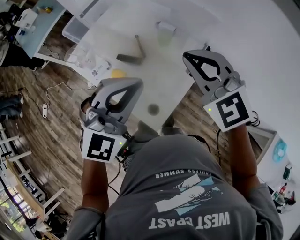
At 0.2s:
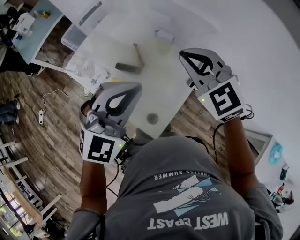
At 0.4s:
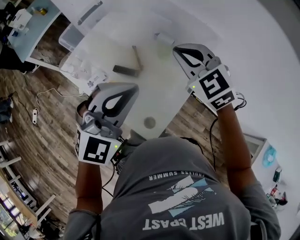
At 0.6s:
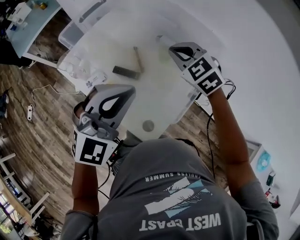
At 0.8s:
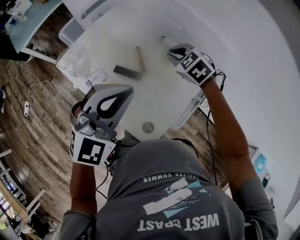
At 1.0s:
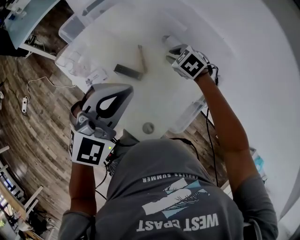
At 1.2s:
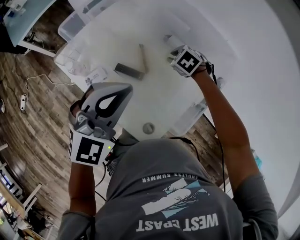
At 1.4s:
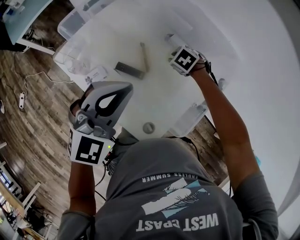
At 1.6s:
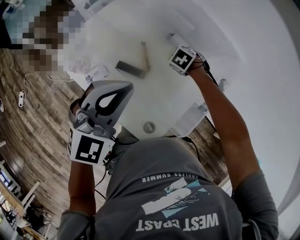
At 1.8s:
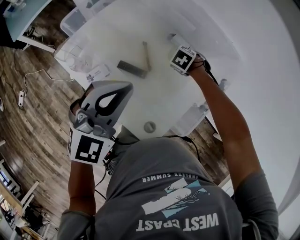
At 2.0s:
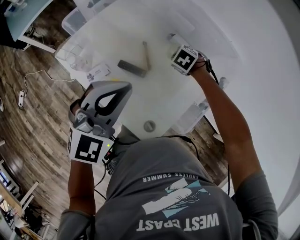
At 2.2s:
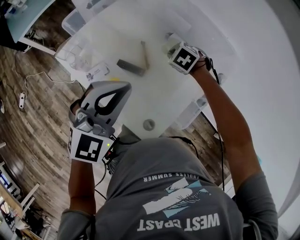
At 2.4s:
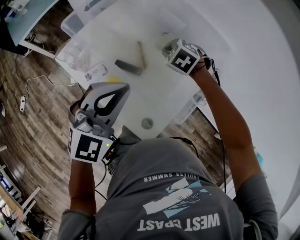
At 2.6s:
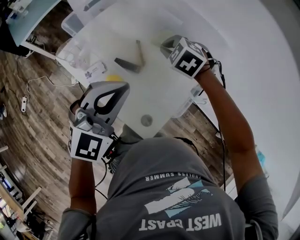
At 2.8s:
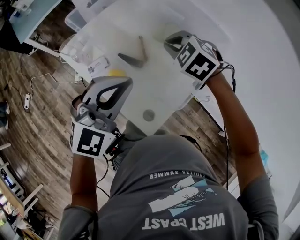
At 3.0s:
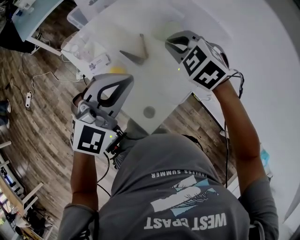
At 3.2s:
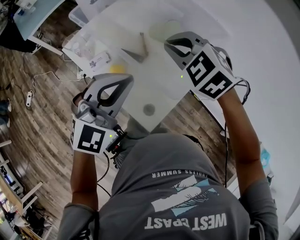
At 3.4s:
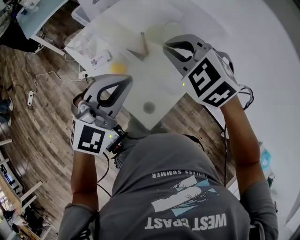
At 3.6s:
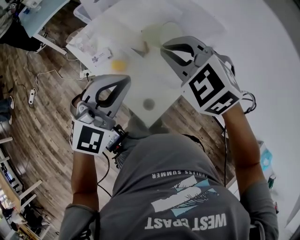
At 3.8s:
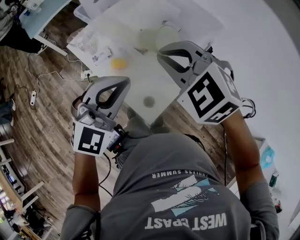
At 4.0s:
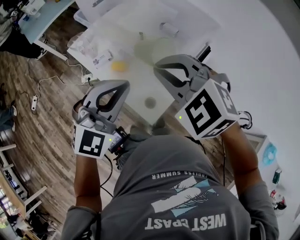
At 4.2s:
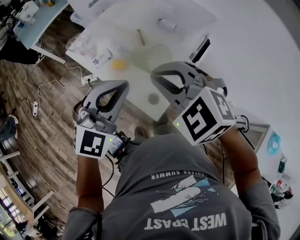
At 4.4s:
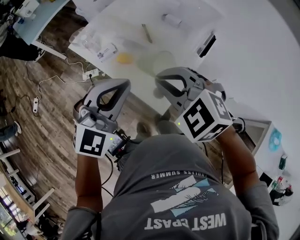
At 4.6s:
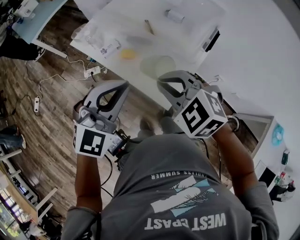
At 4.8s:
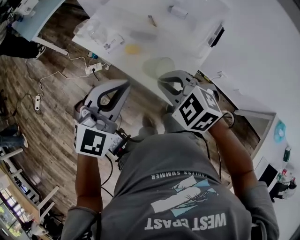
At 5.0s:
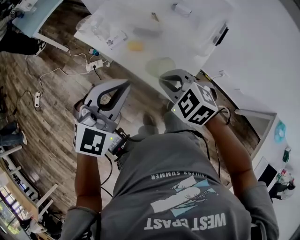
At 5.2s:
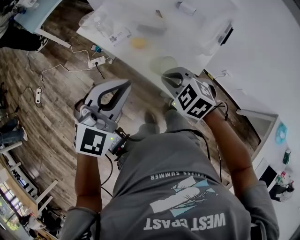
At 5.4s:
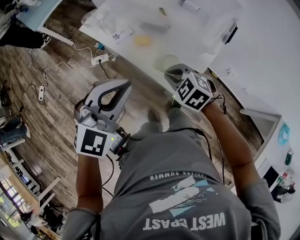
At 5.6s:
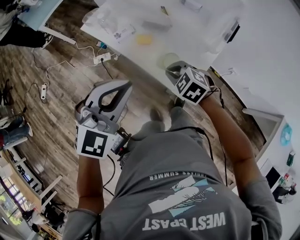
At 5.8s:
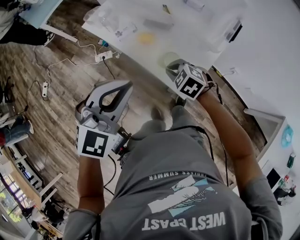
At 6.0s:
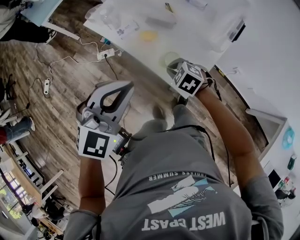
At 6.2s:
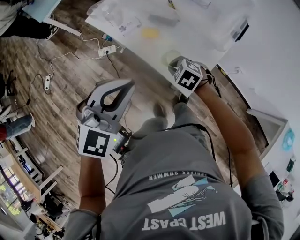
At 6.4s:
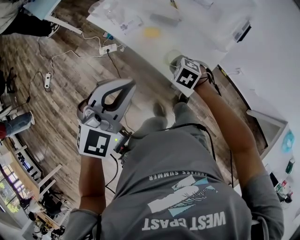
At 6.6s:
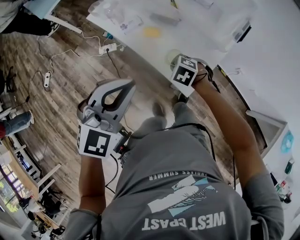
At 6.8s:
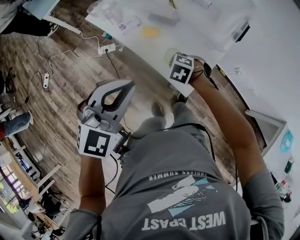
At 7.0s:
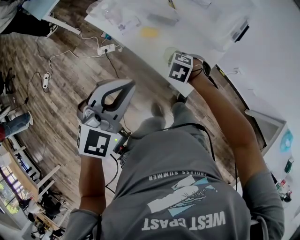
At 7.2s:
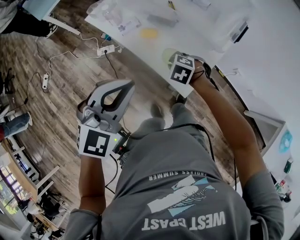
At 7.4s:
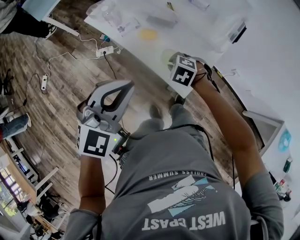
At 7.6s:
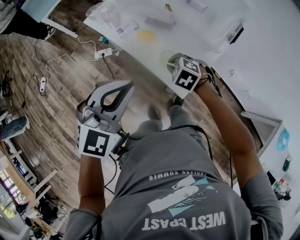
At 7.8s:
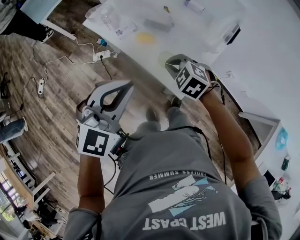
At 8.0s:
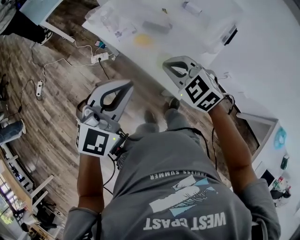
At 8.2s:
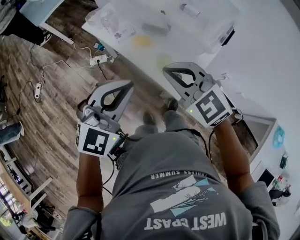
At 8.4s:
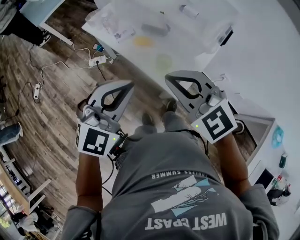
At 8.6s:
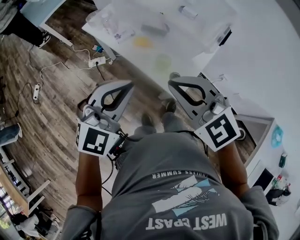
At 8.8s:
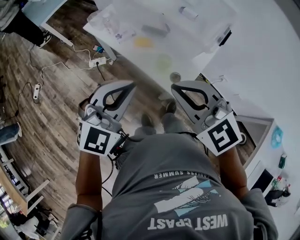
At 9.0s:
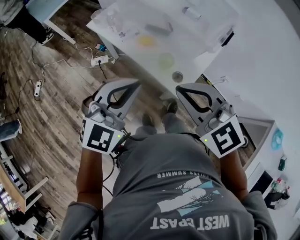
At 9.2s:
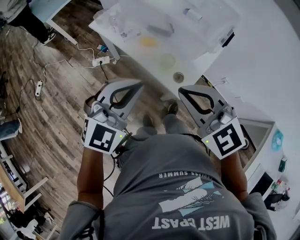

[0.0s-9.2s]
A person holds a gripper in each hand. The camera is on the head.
0.0s to 1.6s: The left gripper ends up some 15 cm from where it was. The right gripper travels downward by roughly 35 cm, and points its fingers approximately 60 degrees further downward.
1.6s to 3.0s: The right gripper is displaced upward by some 25 cm, and points its fingers approximately 30 degrees further upward, while the left gripper ends up some 10 cm from where it was.
3.0s to 4.6s: The left gripper is displaced backward and to the left by some 15 cm. The right gripper moves backward, approximately 25 cm.
4.6s to 6.2s: The right gripper moves downward, roughly 25 cm, and swivels about 20 degrees; the left gripper is displaced to the left by some 5 cm.
6.2s to 7.6s: The grippers move only a little.
7.6s to 9.2s: The right gripper shifts approximately 30 cm upward and backward, and tilts its fingers about 40 degrees upward.

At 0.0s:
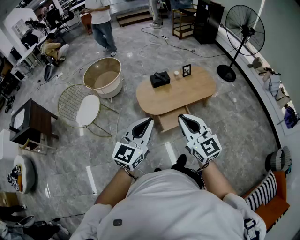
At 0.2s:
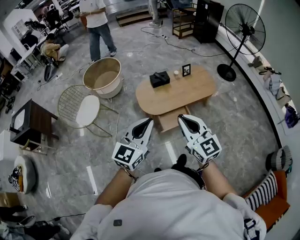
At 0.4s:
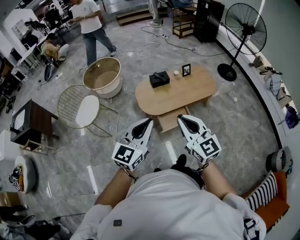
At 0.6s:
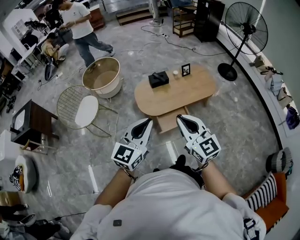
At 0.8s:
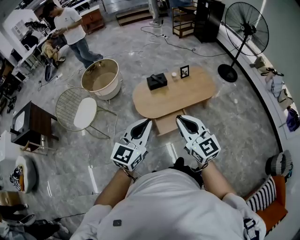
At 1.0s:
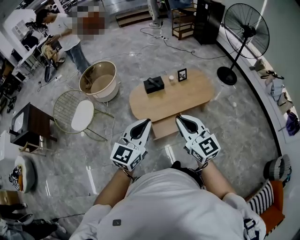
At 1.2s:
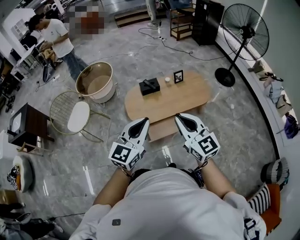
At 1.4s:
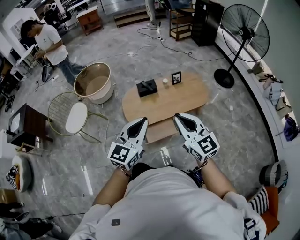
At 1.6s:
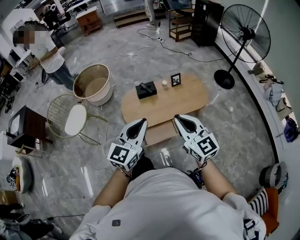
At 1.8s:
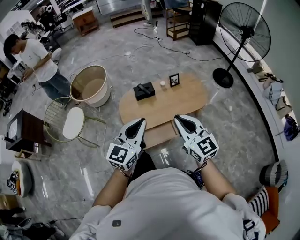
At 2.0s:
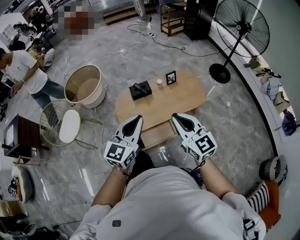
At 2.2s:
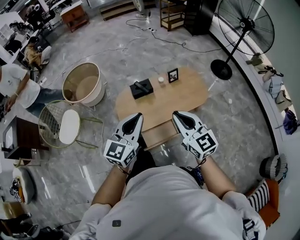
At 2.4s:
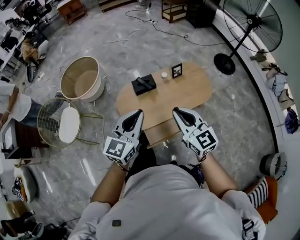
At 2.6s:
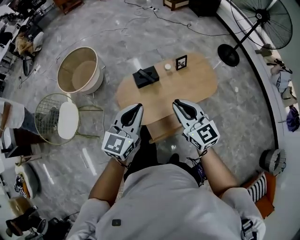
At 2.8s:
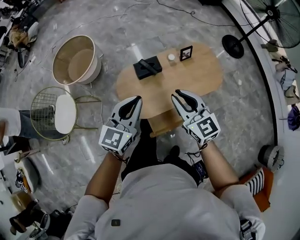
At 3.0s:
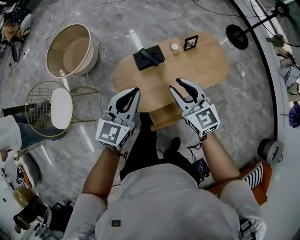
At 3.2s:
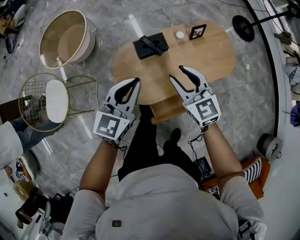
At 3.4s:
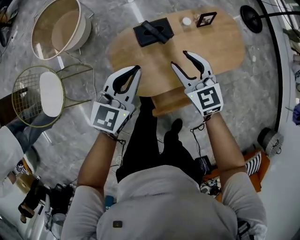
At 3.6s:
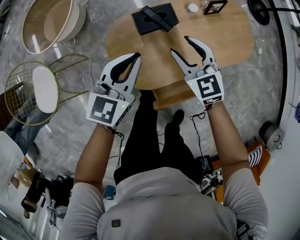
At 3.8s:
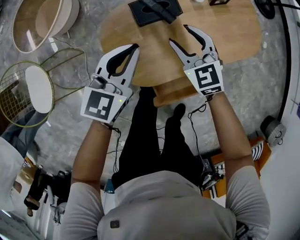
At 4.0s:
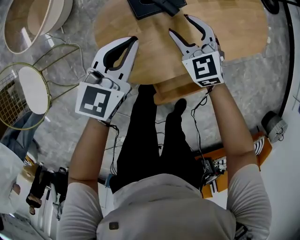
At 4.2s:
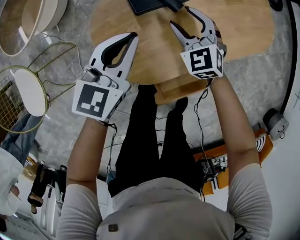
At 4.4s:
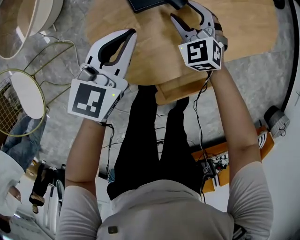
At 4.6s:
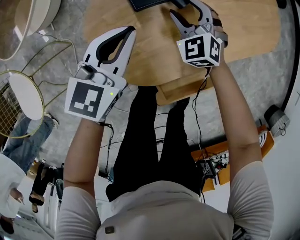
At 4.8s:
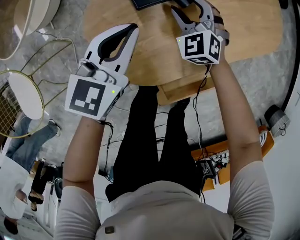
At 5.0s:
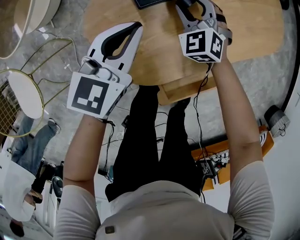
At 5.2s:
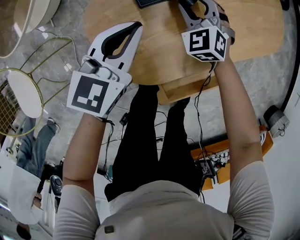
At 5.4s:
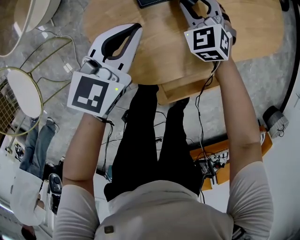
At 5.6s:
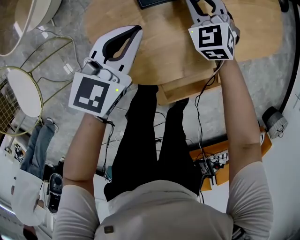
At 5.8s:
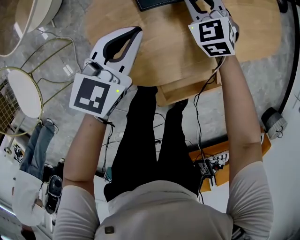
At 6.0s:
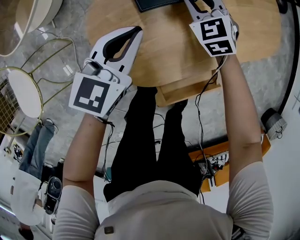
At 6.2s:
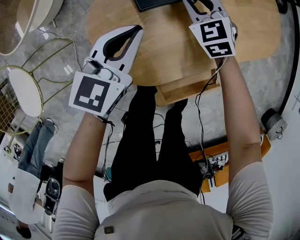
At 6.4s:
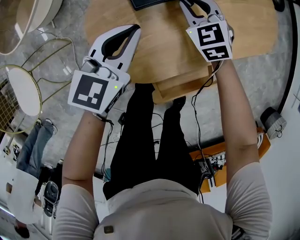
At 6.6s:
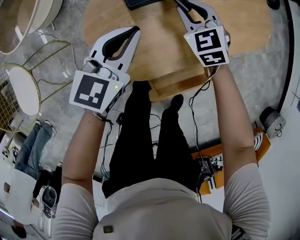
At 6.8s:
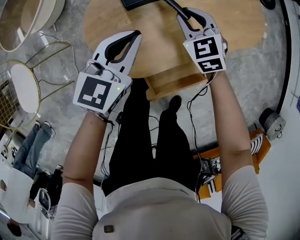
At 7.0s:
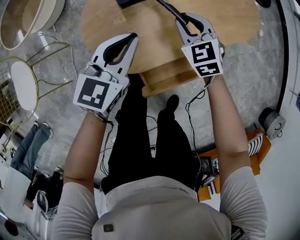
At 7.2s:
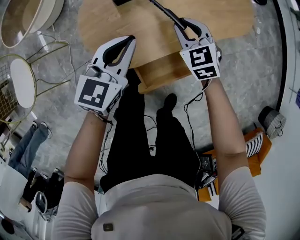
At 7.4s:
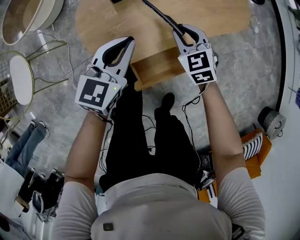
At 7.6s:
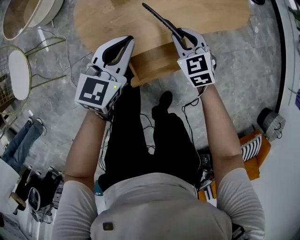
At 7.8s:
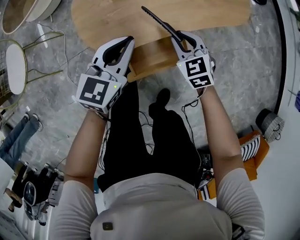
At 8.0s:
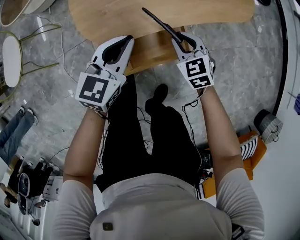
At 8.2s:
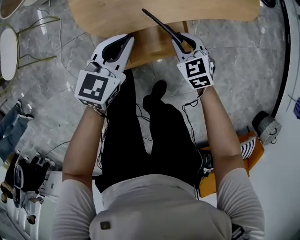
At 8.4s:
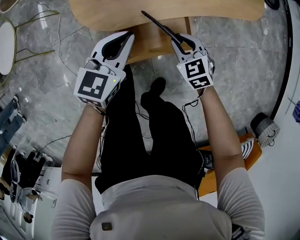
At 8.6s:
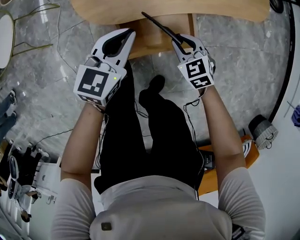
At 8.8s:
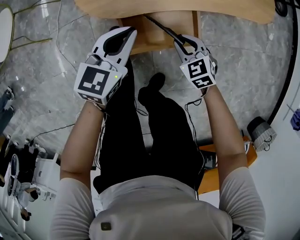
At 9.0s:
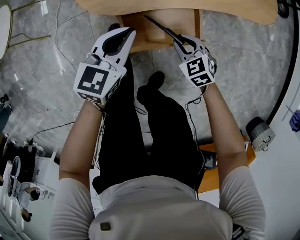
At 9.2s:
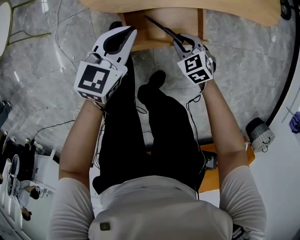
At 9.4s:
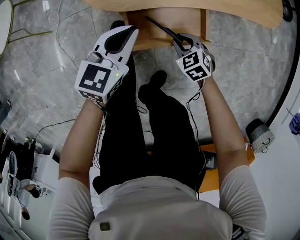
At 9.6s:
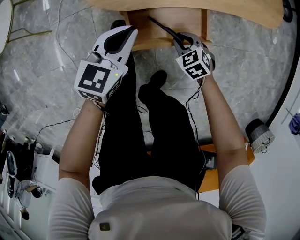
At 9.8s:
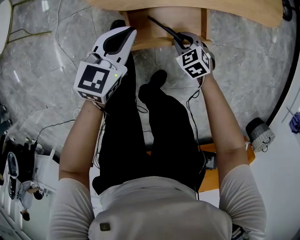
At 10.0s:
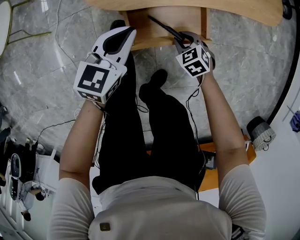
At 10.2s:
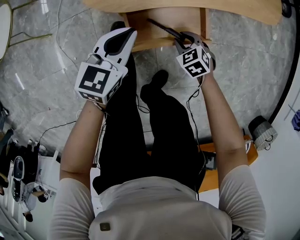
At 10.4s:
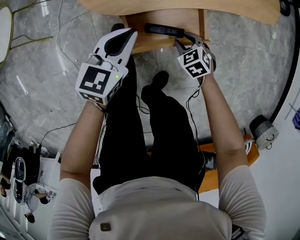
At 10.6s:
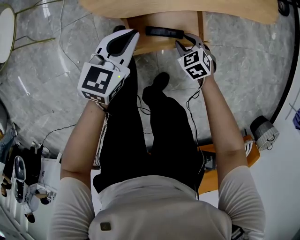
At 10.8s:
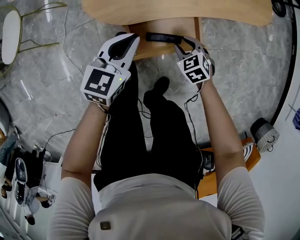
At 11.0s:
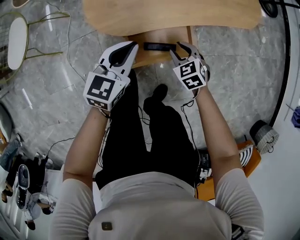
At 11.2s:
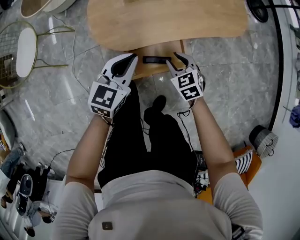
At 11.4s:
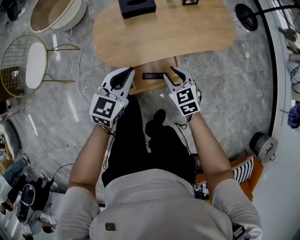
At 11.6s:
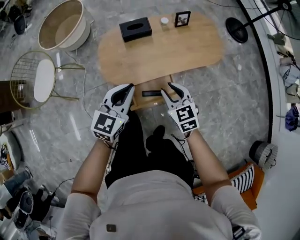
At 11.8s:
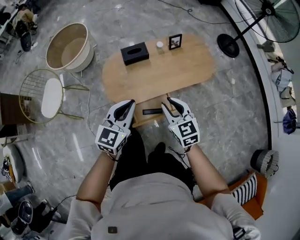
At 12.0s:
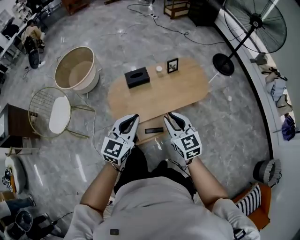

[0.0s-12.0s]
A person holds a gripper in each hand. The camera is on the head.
0.0s to 1.6s: The two grippers go roughly 25 cm to the right and forward.
1.6s to 3.0s: The two grippers go approximately 40 cm forward and downward. The right gripper opens its fingers.
3.0s to 4.4s: Both grippers move downward, about 40 cm. The right gripper changes its angle by roughly 40 degrees, and opens.
4.4s to 6.0s: The right gripper goes roughly 5 cm forward, and closes its fingers.
6.0s to 7.6s: The right gripper moves backward and to the right, roughly 30 cm, while the left gripper travels backward, to the right and upward by approximately 25 cm.
7.6s to 9.0s: Both grippers move backward and downward, about 20 cm. The right gripper swivels some 20 degrees.
9.0s to 10.4s: The right gripper heads downward, covering roughly 5 cm.
10.4s to 12.0s: Both grippers travel together upward, roughly 50 cm. The left gripper swivels about 20 degrees; the right gripper tilts its fingers approximately 50 degrees upward.

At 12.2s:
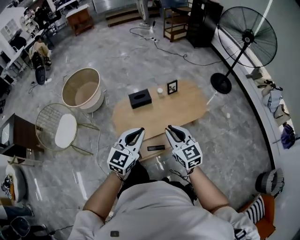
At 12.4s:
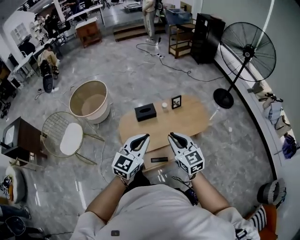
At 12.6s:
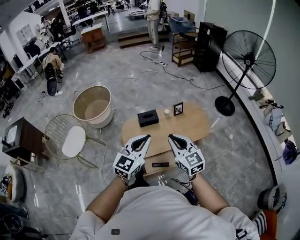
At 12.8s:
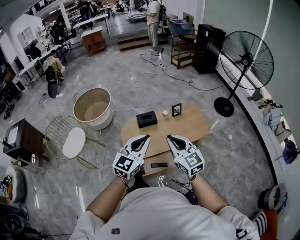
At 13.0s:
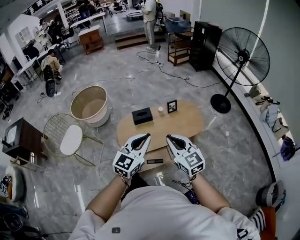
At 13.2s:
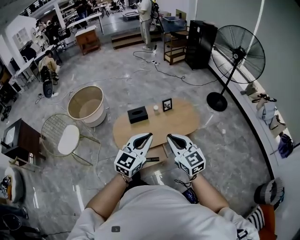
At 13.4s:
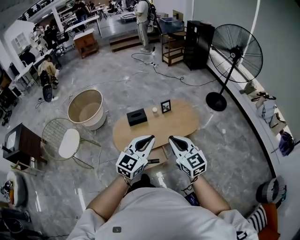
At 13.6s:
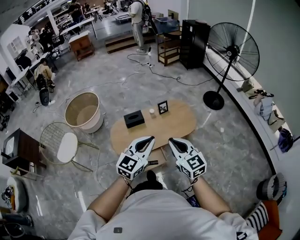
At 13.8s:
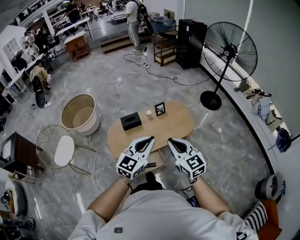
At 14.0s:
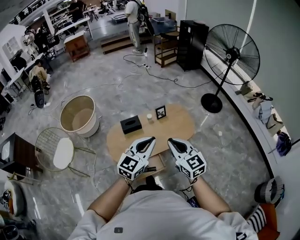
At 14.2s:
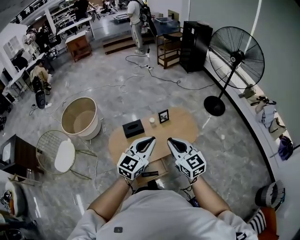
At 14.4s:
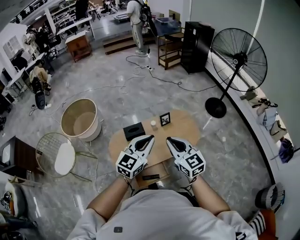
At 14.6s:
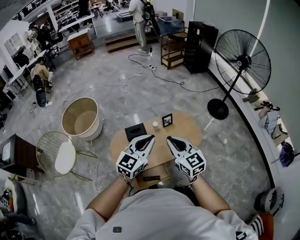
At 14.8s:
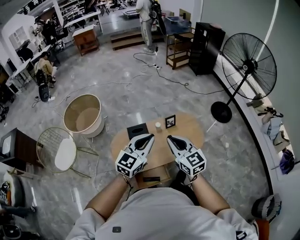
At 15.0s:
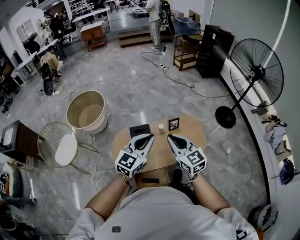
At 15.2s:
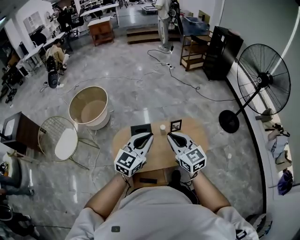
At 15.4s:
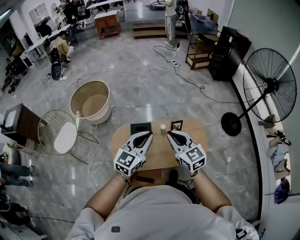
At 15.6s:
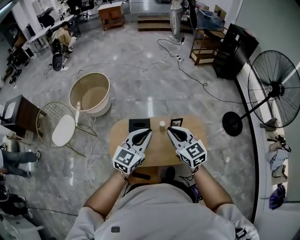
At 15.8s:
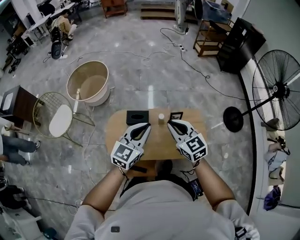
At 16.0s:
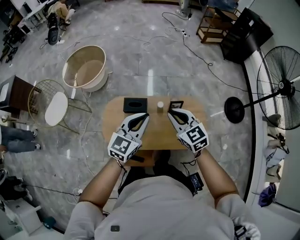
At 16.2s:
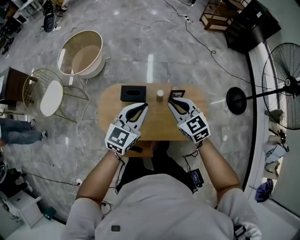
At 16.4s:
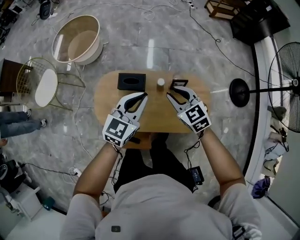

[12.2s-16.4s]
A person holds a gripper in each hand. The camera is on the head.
12.2s to 13.6s: The right gripper is displaced to the right, upward and backward by roughly 15 cm, while the left gripper heads to the right and upward, covering some 15 cm.
13.6s to 15.0s: Both grippers travel together forward, approximately 25 cm.
15.0s to 16.4s: Both grippers move forward and downward, approximately 30 cm. The right gripper turns by approximately 30 degrees; the left gripper changes its angle by some 20 degrees.
